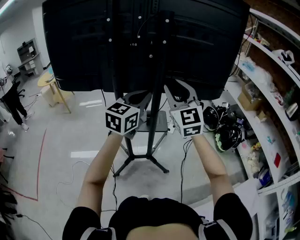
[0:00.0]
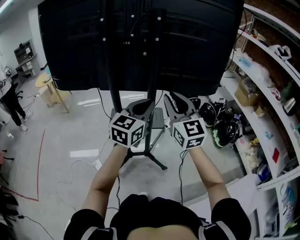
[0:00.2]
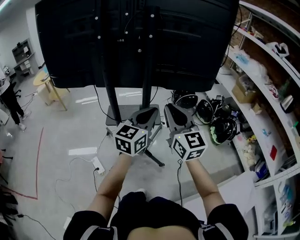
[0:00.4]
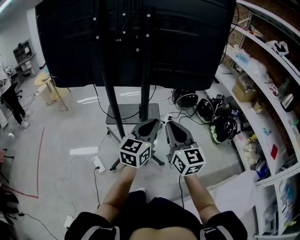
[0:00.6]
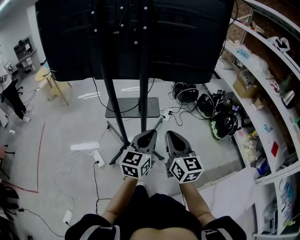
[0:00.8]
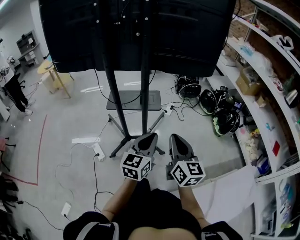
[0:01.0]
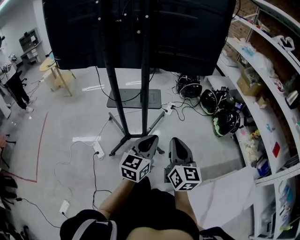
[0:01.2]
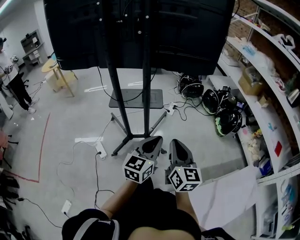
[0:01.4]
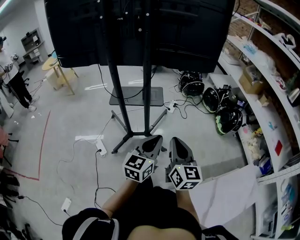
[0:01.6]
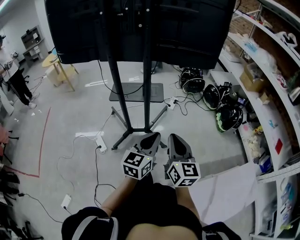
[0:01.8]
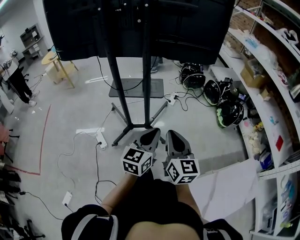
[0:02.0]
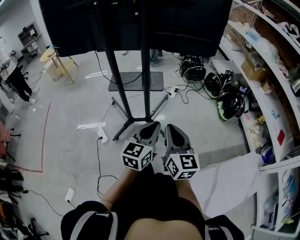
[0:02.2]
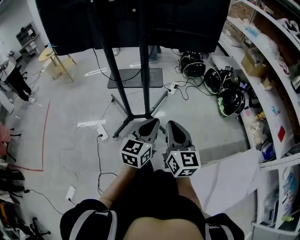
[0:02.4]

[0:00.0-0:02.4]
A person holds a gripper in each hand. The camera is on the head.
0:00.0 to 0:01.2: The two grippers go about 35 cm backward, downward and to the right. The right gripper rotates around the line of its fingers by about 40 degrees, clockwise from behind, and closes.
0:01.2 to 0:02.4: The grippers make only small movements.

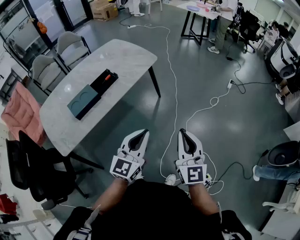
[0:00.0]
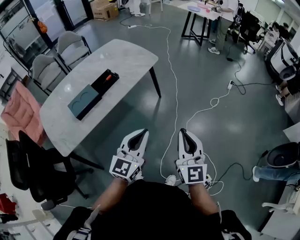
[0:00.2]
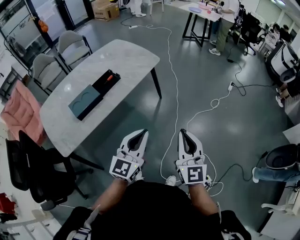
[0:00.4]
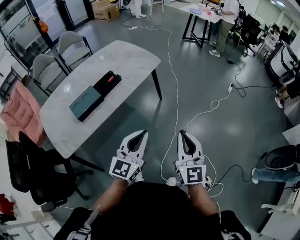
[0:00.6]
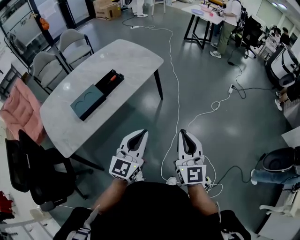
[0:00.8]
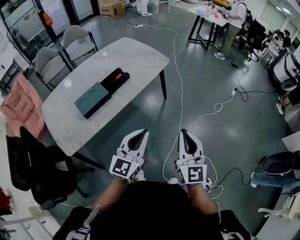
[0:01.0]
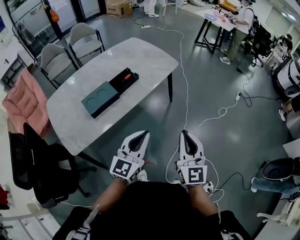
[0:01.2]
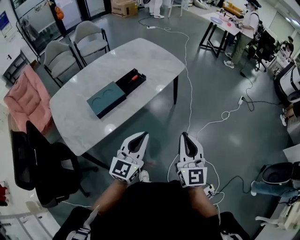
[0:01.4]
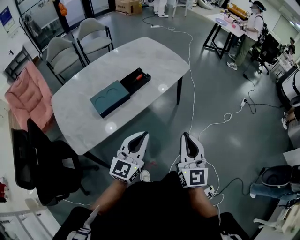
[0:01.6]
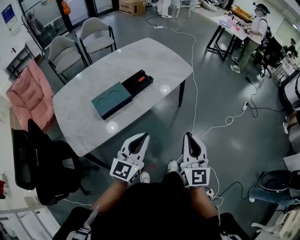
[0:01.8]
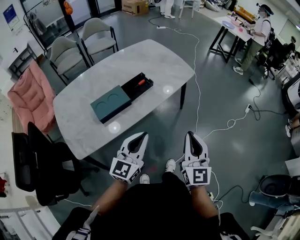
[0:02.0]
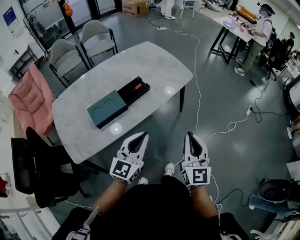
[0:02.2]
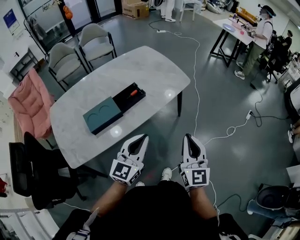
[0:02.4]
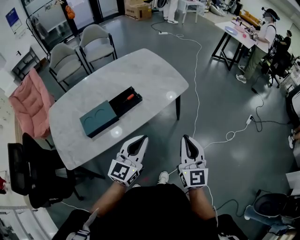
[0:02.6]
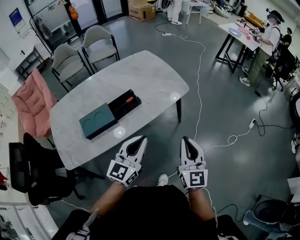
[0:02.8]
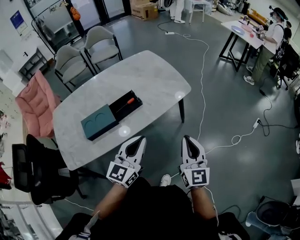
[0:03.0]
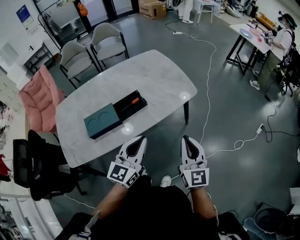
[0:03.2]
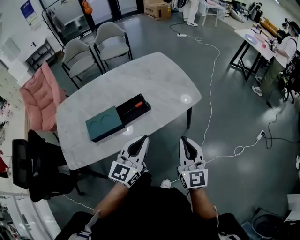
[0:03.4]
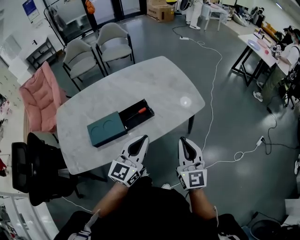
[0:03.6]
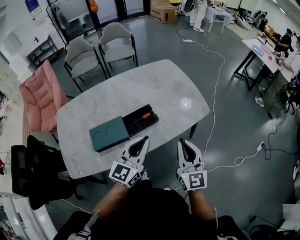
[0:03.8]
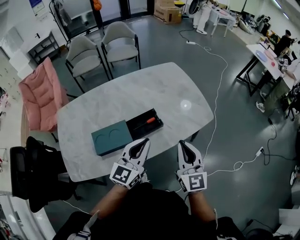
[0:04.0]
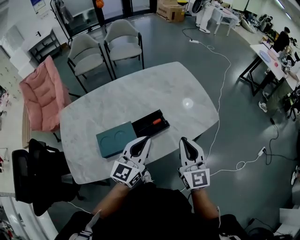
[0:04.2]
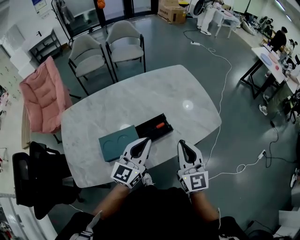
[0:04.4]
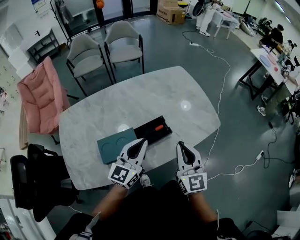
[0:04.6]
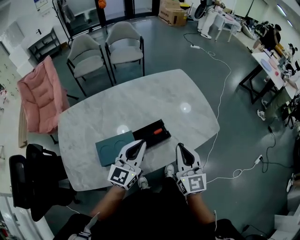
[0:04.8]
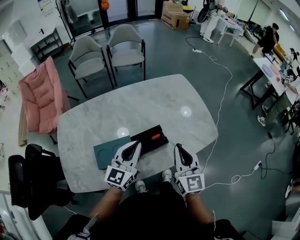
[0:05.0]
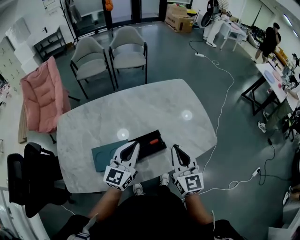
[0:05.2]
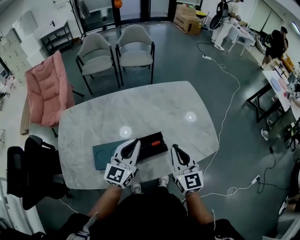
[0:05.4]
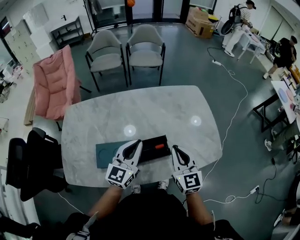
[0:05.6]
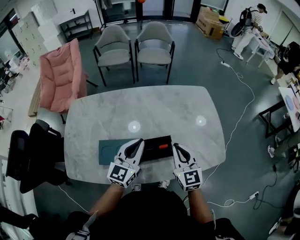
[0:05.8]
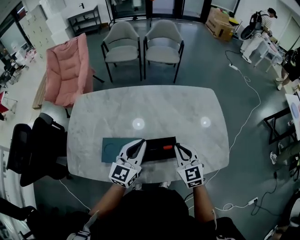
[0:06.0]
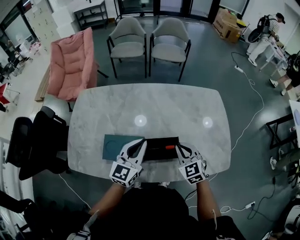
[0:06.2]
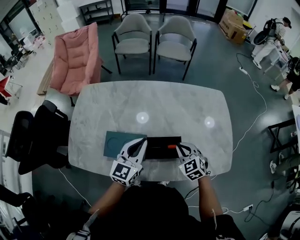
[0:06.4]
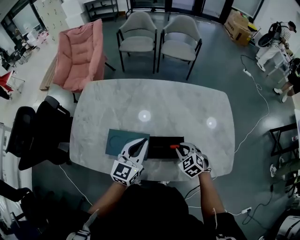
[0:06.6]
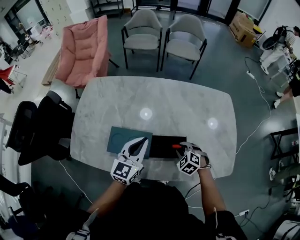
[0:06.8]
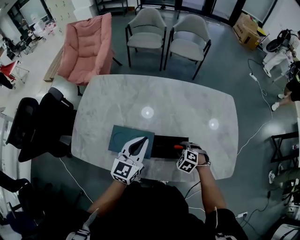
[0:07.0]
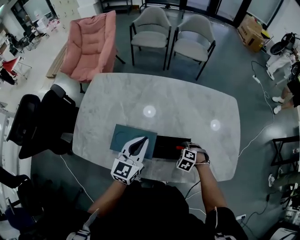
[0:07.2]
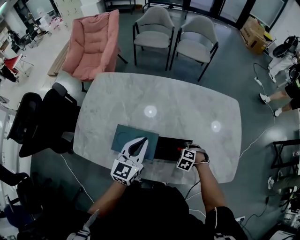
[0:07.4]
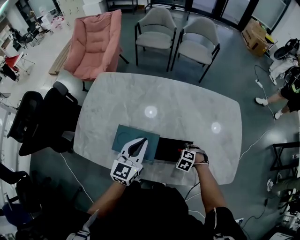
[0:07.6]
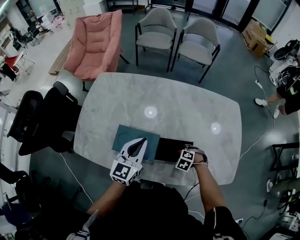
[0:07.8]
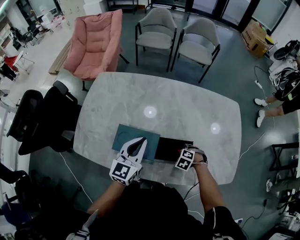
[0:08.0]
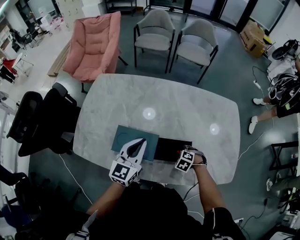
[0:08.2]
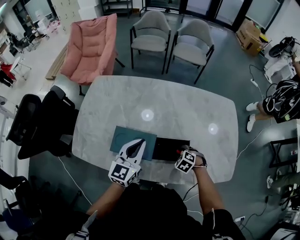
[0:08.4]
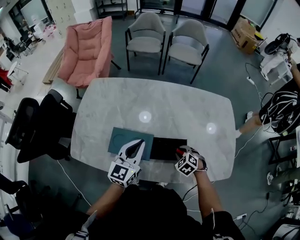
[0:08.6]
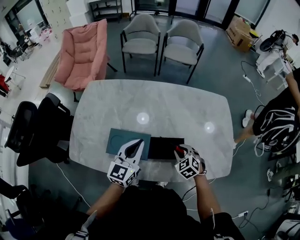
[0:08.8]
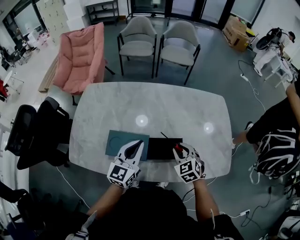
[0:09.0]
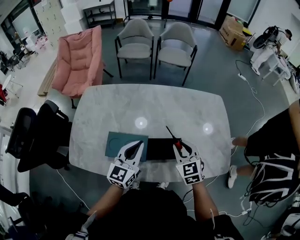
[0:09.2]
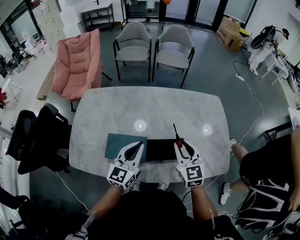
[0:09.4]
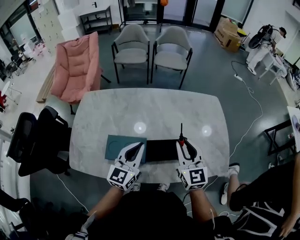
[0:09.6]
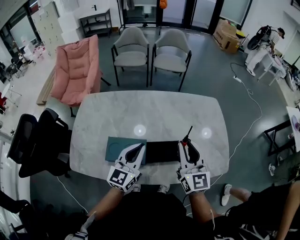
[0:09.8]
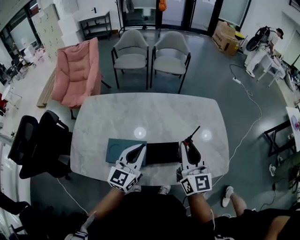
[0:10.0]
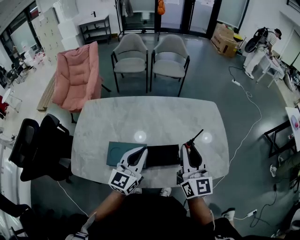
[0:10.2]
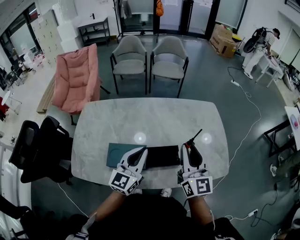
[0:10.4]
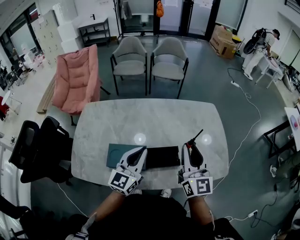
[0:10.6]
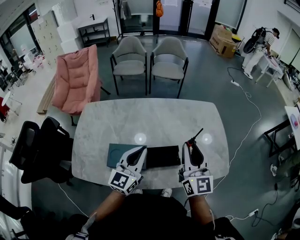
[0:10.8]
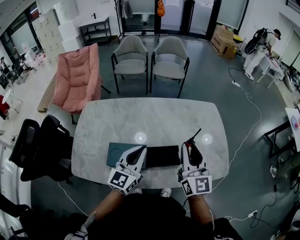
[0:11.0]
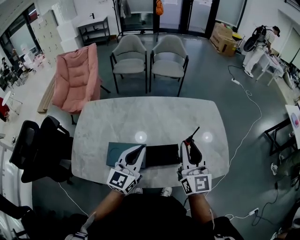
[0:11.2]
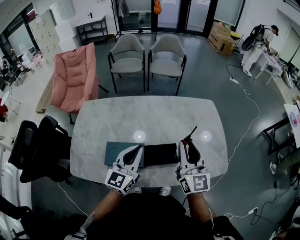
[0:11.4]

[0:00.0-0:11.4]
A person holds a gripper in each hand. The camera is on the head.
0:00.0 to 0:01.4: Both grippers move to the left, about 20 cm.
0:01.4 to 0:02.8: The left gripper moves forward, roughly 20 cm; the right gripper goes approximately 25 cm forward and to the right.
0:02.8 to 0:04.2: The left gripper goes some 25 cm forward and to the left. The right gripper shifts some 25 cm to the left and forward.
0:04.2 to 0:05.6: Both grippers travel together forward, about 15 cm. The right gripper swivels roughly 20 degrees.
0:05.6 to 0:07.2: The left gripper shifts by approximately 10 cm, while the right gripper moves downward, some 30 cm, angles its fingers downward, by roughly 70 degrees, and opens up.
0:07.2 to 0:08.6: The grippers move only a little.
0:08.6 to 0:10.0: The right gripper travels upward by some 35 cm, and tilts its fingers roughly 70 degrees upward, while the left gripper goes some 5 cm upward.
0:10.0 to 0:11.4: The grippers make only small movements.

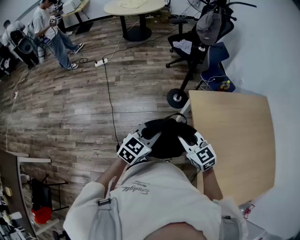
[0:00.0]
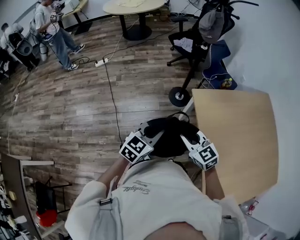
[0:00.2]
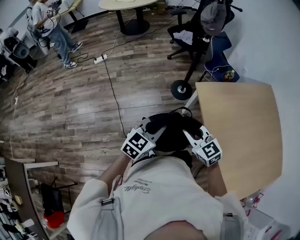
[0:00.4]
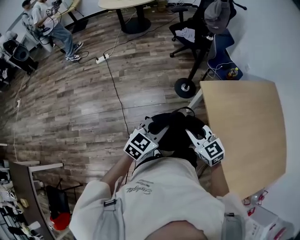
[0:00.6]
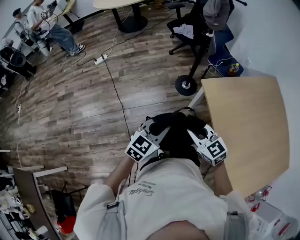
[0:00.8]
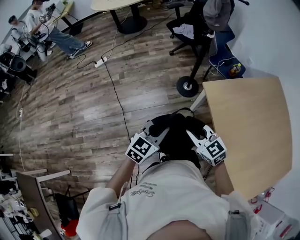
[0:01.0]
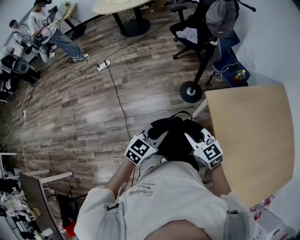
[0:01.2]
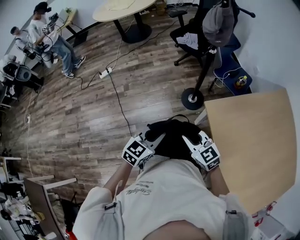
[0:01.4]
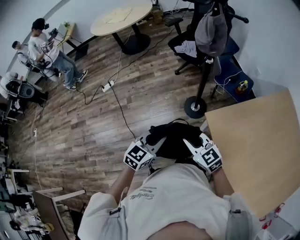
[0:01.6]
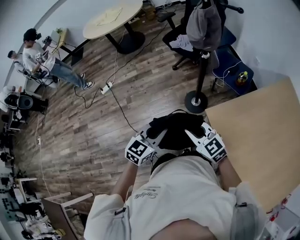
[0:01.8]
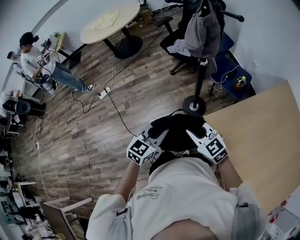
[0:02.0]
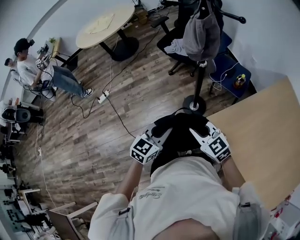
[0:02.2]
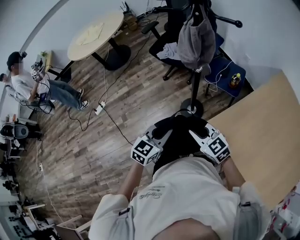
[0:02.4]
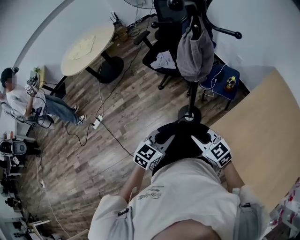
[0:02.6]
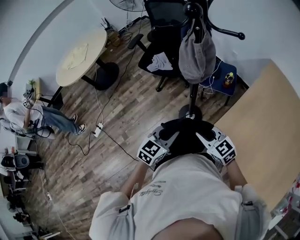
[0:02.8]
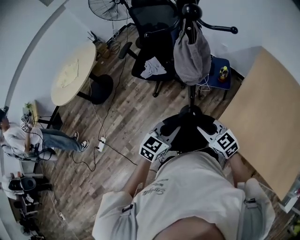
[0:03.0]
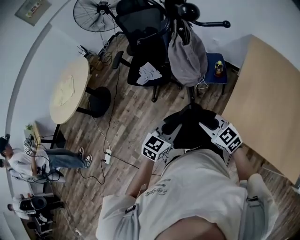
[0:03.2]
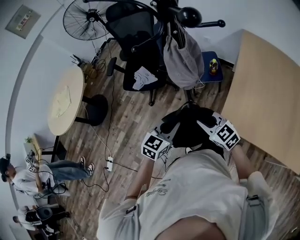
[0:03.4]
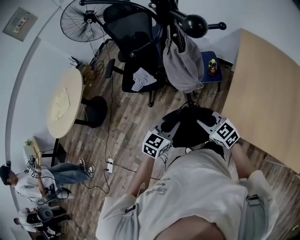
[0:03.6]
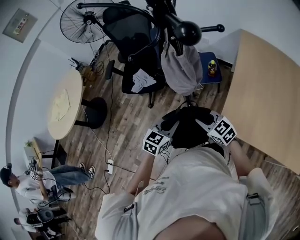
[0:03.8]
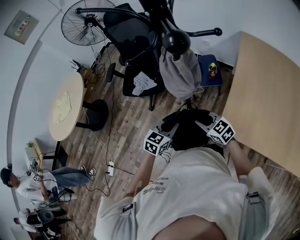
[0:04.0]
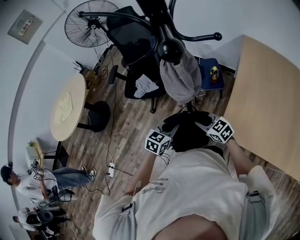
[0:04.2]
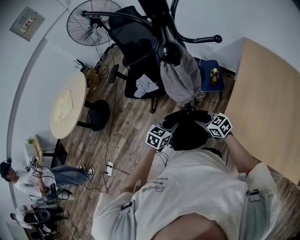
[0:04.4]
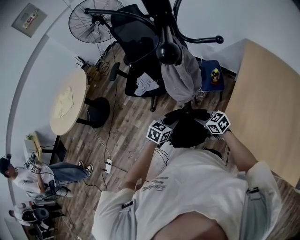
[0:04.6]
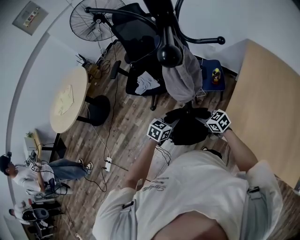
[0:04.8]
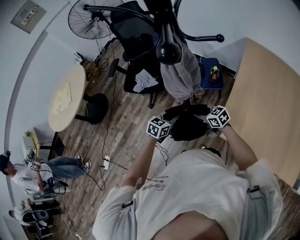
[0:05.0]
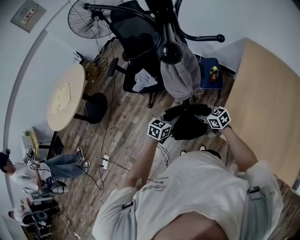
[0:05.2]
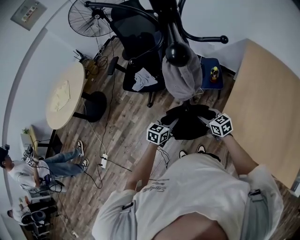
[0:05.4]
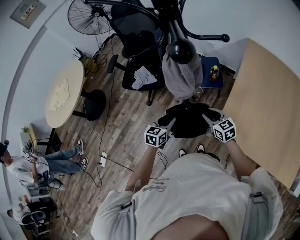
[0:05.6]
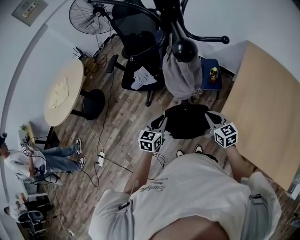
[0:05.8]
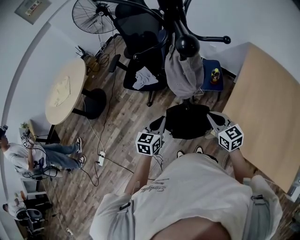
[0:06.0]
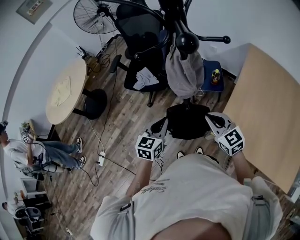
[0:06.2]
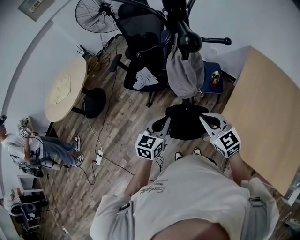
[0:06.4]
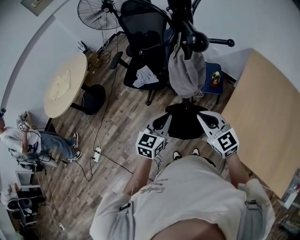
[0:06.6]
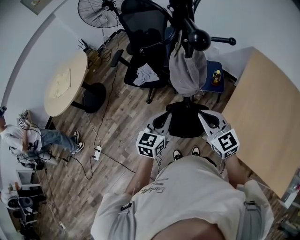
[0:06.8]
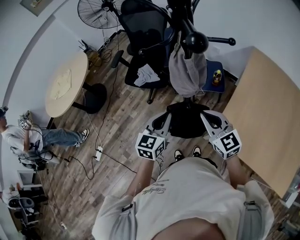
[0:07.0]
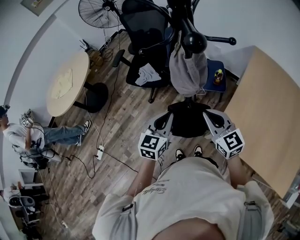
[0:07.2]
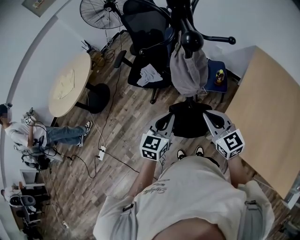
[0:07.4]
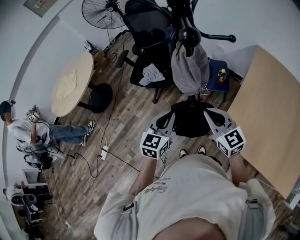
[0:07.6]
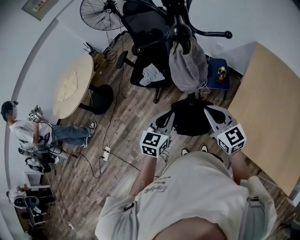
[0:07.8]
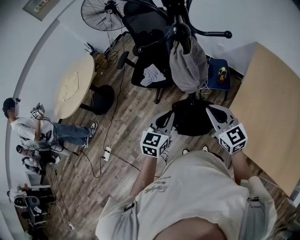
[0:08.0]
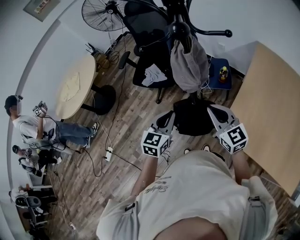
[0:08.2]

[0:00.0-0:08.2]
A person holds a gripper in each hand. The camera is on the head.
0:00.0 to 0:01.6: The grippers both shift forward by approximately 25 cm.
0:01.6 to 0:03.2: The left gripper changes place by about 30 cm, and rotates about 40 degrees. Meanwhile the right gripper ends up some 25 cm from where it was, and rotates roughly 40 degrees.
0:03.2 to 0:05.0: The grippers both shift downward and forward by approximately 15 cm. The right gripper swivels approximately 20 degrees.
0:05.0 to 0:06.6: The two grippers go roughly 20 cm upward. The left gripper changes its angle by about 30 degrees, and opens, then closes once more. Meanwhile the right gripper swivels roughly 30 degrees, and closes its fingers.
0:06.6 to 0:08.2: The grippers move only a little.

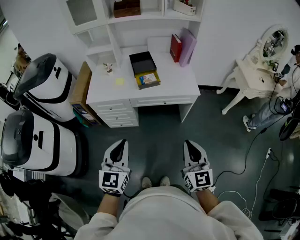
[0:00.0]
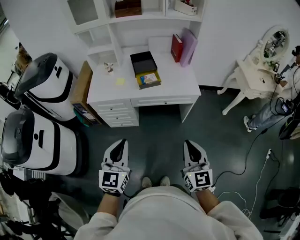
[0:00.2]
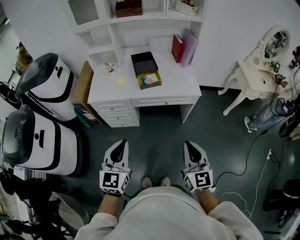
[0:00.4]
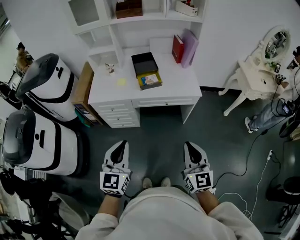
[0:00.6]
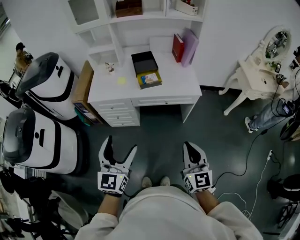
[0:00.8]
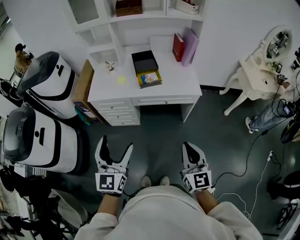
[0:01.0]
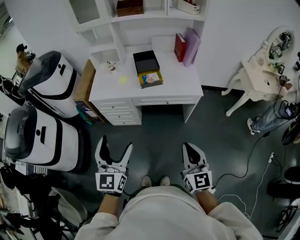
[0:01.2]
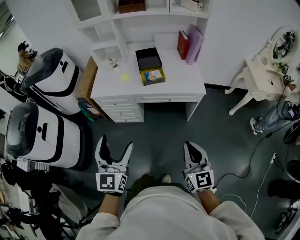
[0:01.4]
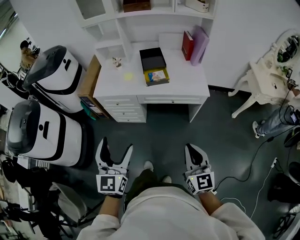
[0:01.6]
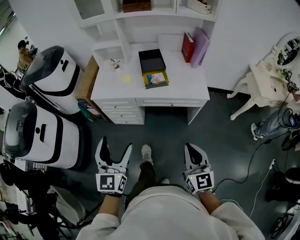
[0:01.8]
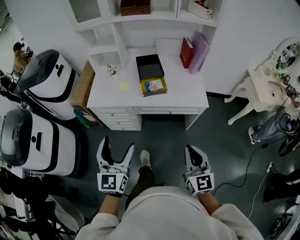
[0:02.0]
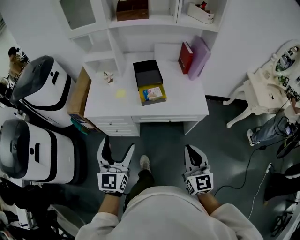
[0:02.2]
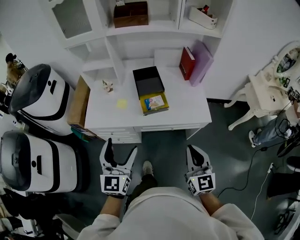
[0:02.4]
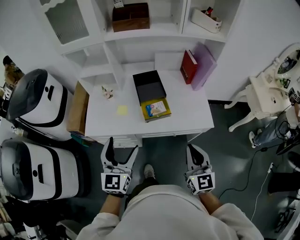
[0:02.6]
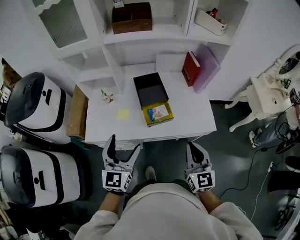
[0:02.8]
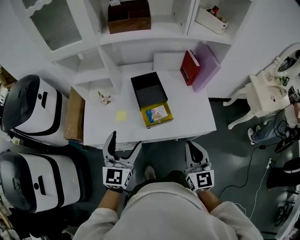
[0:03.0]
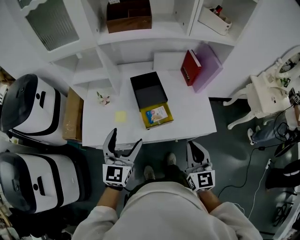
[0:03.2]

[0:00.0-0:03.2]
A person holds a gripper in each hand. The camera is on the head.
0:00.0 to 0:01.6: The left gripper opens up.
0:01.6 to 0:03.2: Both grippers move forward, about 40 cm.
